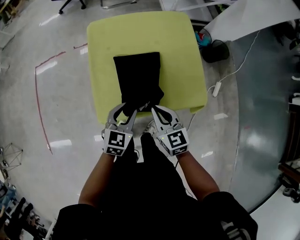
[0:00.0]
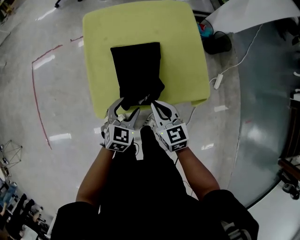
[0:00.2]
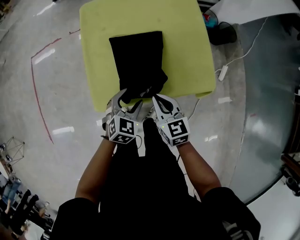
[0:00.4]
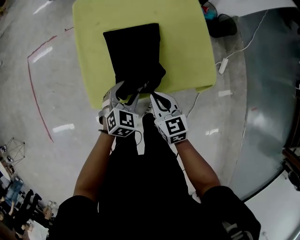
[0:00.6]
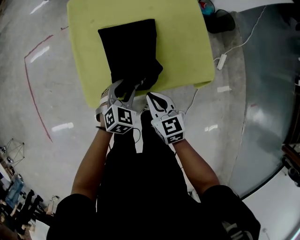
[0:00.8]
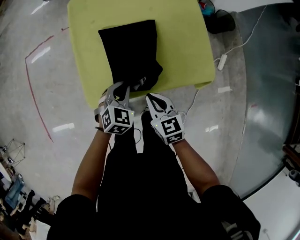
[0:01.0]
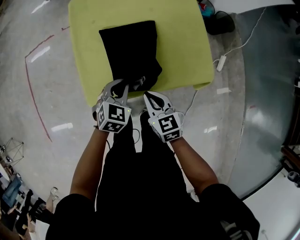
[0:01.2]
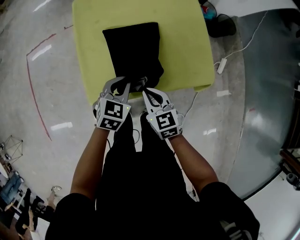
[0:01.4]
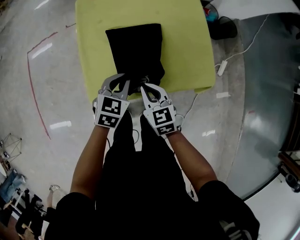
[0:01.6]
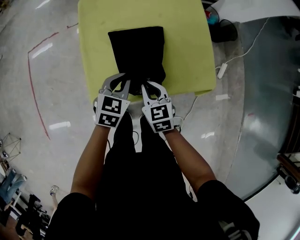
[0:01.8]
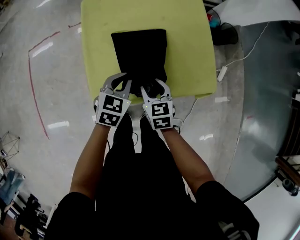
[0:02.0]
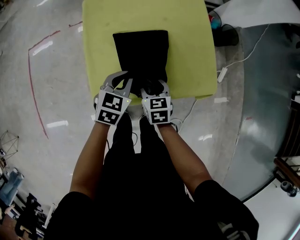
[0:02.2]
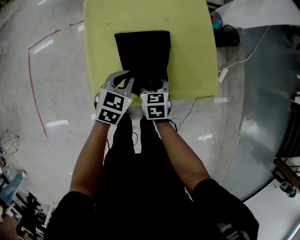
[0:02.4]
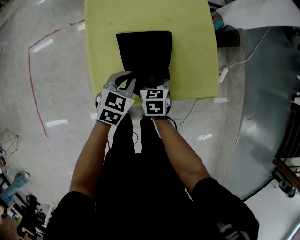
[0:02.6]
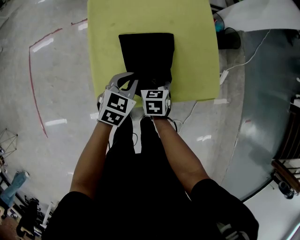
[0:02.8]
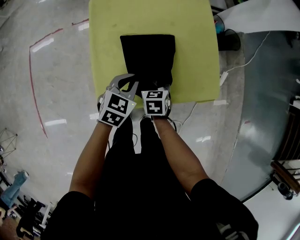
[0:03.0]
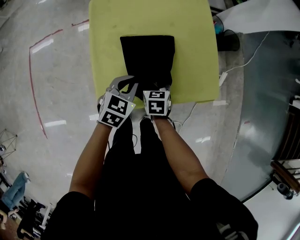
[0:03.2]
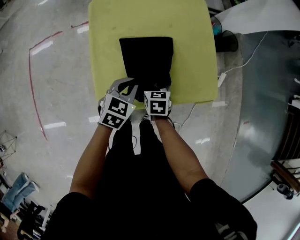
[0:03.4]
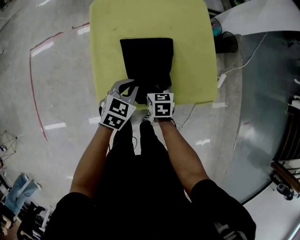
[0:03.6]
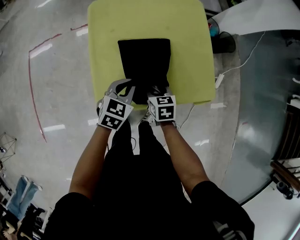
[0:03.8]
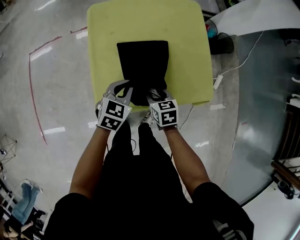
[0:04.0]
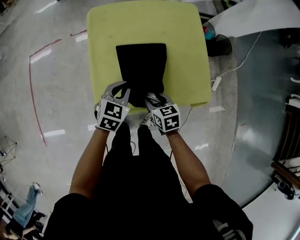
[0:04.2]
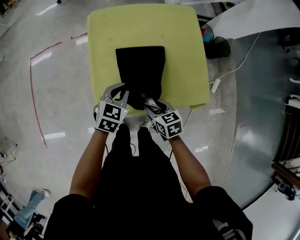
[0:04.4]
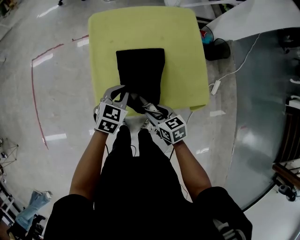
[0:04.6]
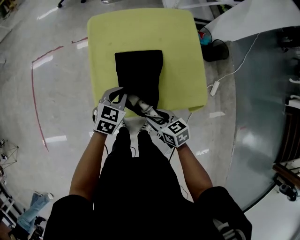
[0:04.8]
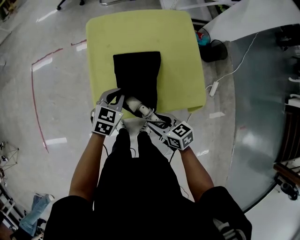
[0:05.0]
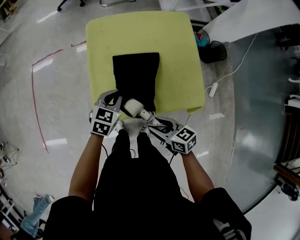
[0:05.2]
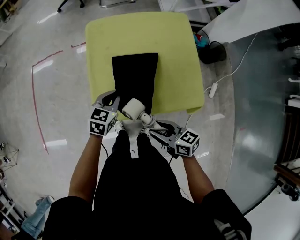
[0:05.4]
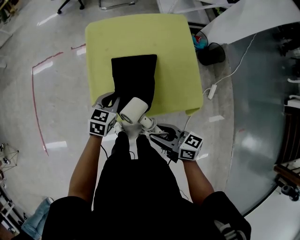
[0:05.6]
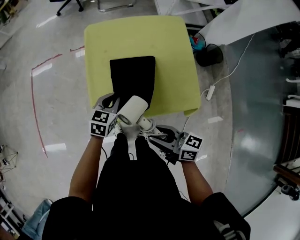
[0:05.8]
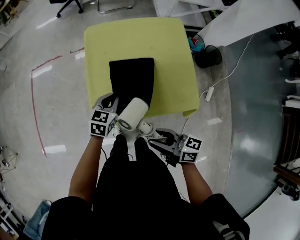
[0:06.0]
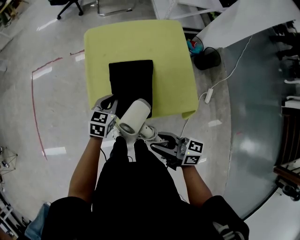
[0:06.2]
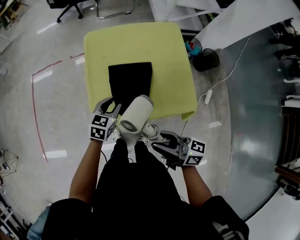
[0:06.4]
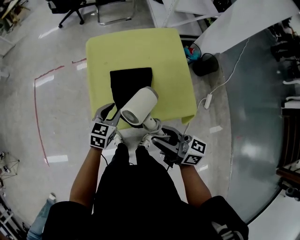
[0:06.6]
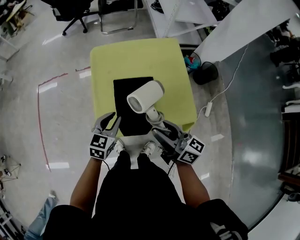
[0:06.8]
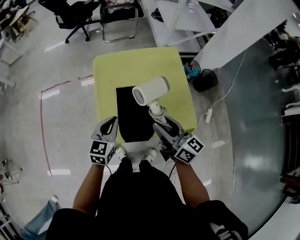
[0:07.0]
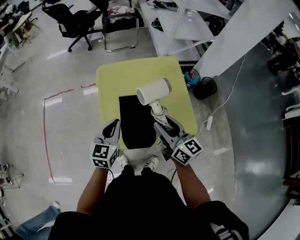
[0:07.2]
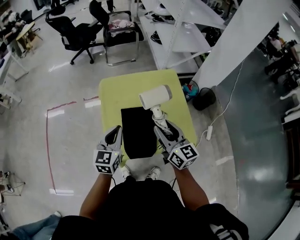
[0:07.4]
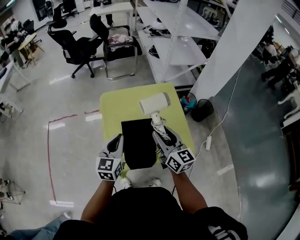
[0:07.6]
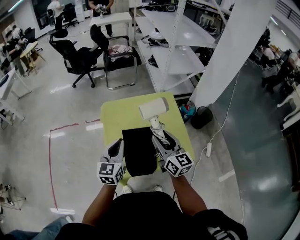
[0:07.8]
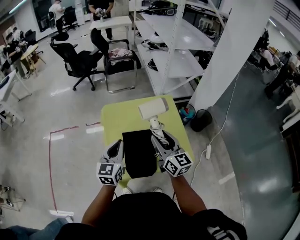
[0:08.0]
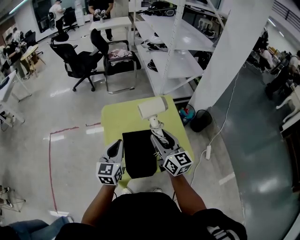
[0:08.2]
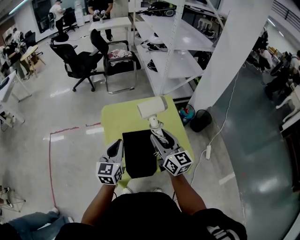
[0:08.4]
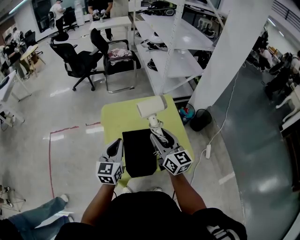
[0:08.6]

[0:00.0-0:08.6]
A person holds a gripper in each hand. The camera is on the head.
0:00.0 to 0:01.4: The left gripper shifts some 5 cm downward, and closes up. The right gripper is displaced downward by about 10 cm.
0:01.4 to 0:02.8: The right gripper shifts roughly 10 cm forward and downward, turns by roughly 20 degrees, and opens its fingers; the left gripper moves about 5 cm.
0:02.8 to 0:04.4: The right gripper goes approximately 10 cm backward, and changes its angle by some 20 degrees.
0:04.4 to 0:05.8: The right gripper travels upward and backward by roughly 15 cm, and points its fingers roughly 40 degrees further upward.
0:05.8 to 0:07.2: The left gripper goes about 15 cm upward, swivels some 20 degrees, and opens, then closes again. The right gripper travels forward and upward by some 20 cm, and changes its angle by about 40 degrees.
0:07.2 to 0:08.6: Both grippers travel together upward, about 5 cm.

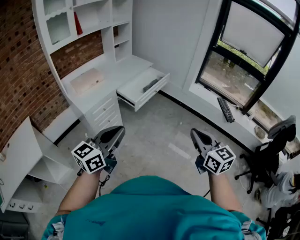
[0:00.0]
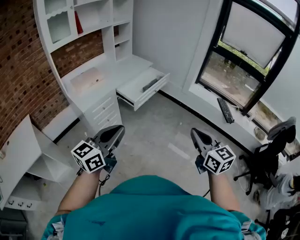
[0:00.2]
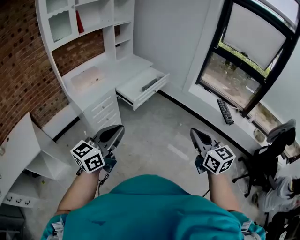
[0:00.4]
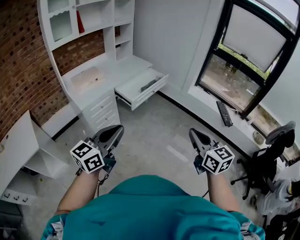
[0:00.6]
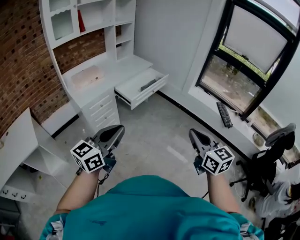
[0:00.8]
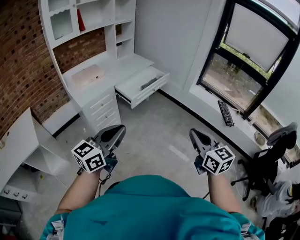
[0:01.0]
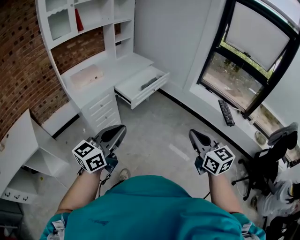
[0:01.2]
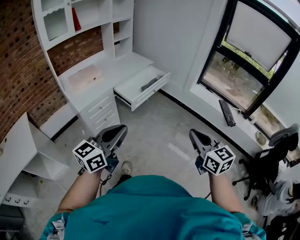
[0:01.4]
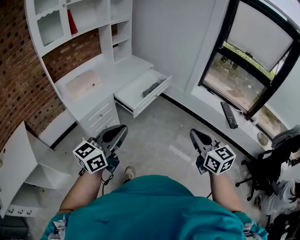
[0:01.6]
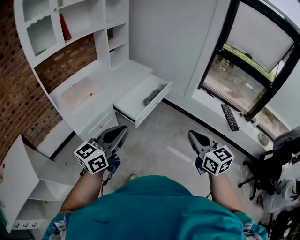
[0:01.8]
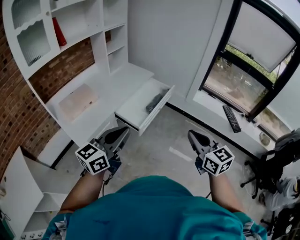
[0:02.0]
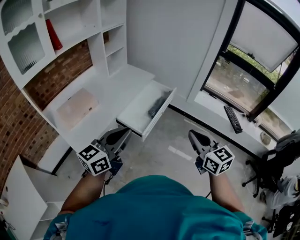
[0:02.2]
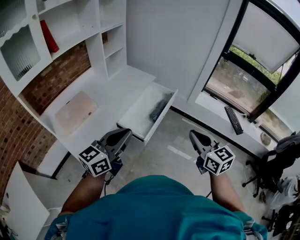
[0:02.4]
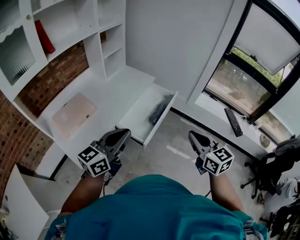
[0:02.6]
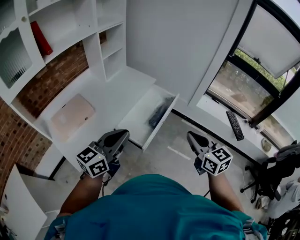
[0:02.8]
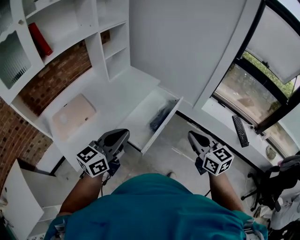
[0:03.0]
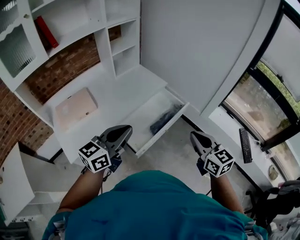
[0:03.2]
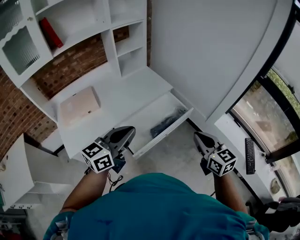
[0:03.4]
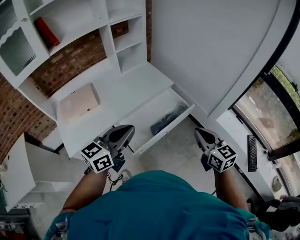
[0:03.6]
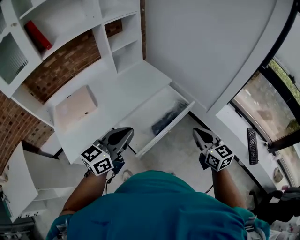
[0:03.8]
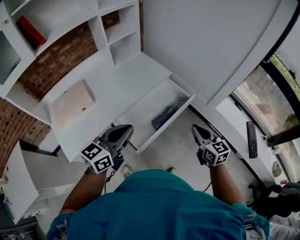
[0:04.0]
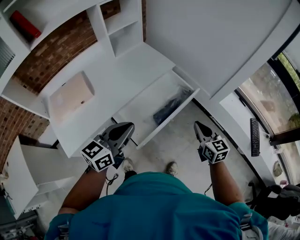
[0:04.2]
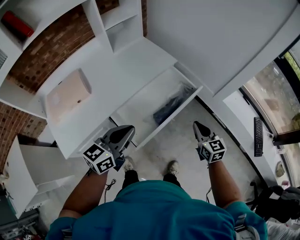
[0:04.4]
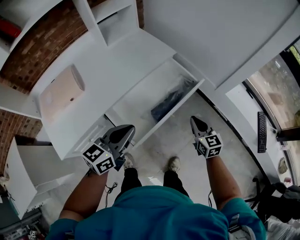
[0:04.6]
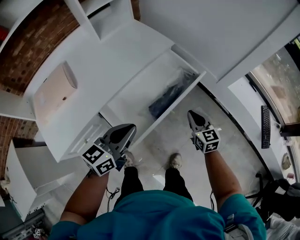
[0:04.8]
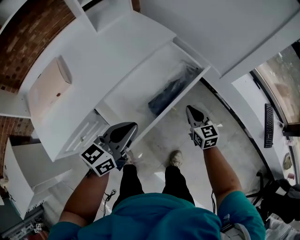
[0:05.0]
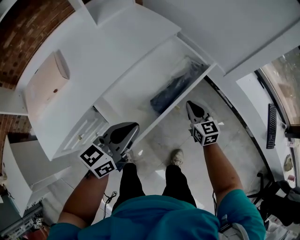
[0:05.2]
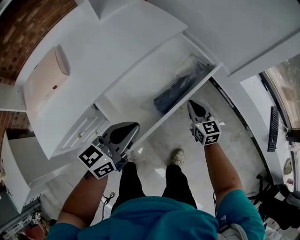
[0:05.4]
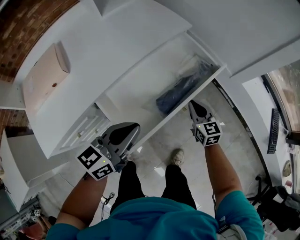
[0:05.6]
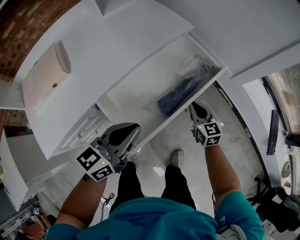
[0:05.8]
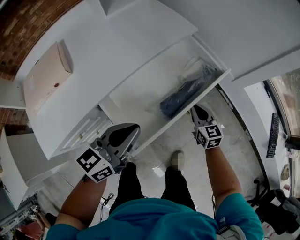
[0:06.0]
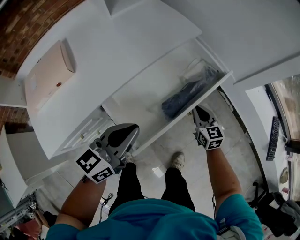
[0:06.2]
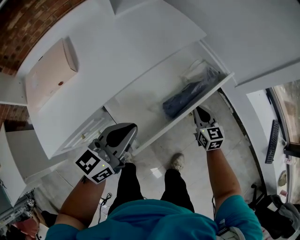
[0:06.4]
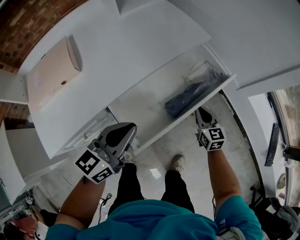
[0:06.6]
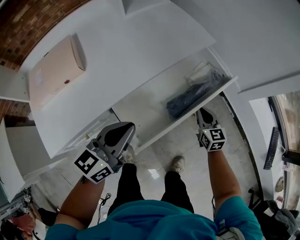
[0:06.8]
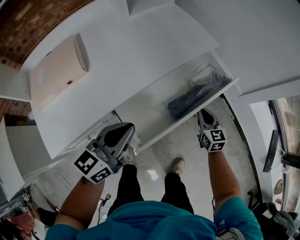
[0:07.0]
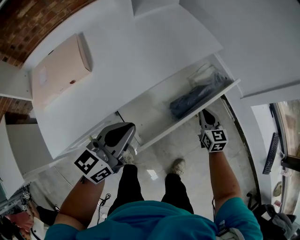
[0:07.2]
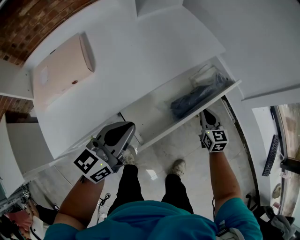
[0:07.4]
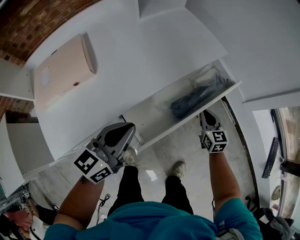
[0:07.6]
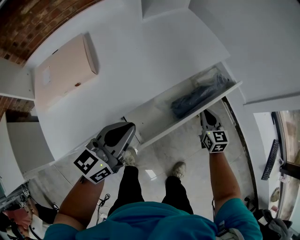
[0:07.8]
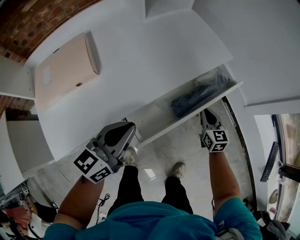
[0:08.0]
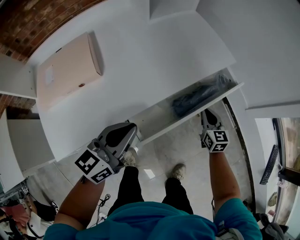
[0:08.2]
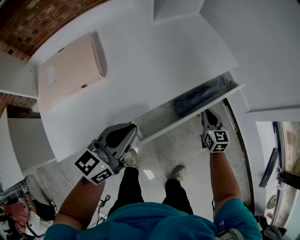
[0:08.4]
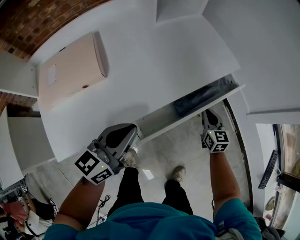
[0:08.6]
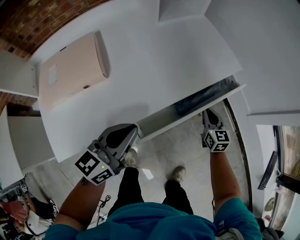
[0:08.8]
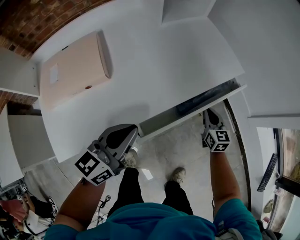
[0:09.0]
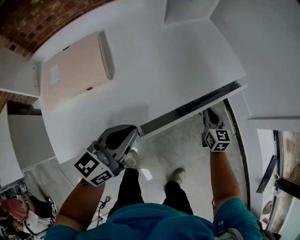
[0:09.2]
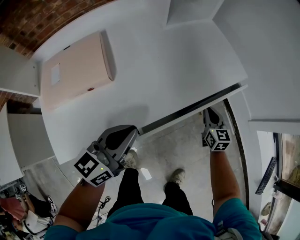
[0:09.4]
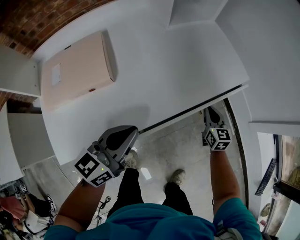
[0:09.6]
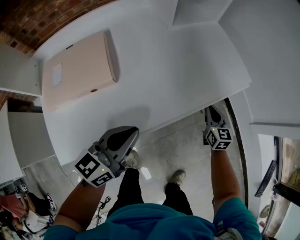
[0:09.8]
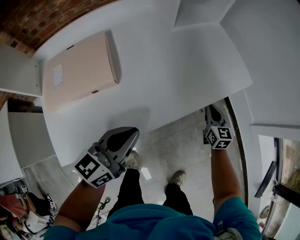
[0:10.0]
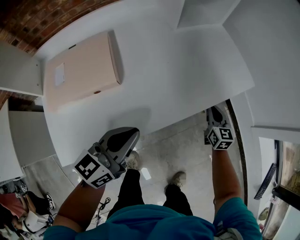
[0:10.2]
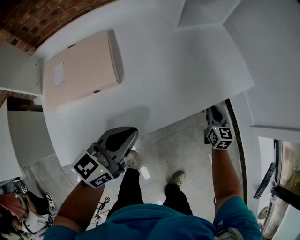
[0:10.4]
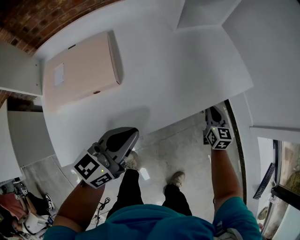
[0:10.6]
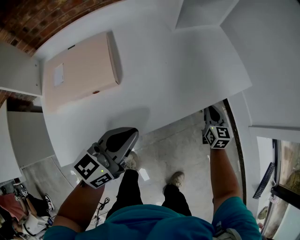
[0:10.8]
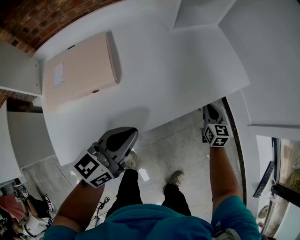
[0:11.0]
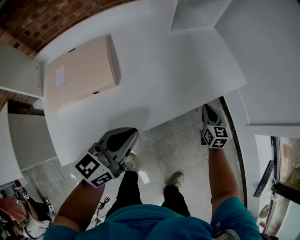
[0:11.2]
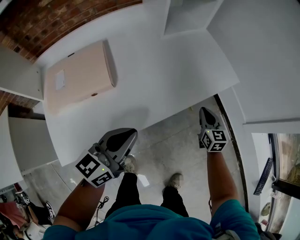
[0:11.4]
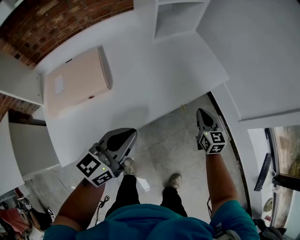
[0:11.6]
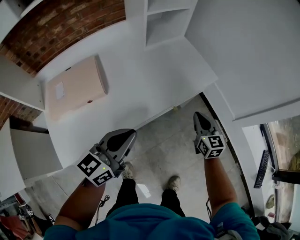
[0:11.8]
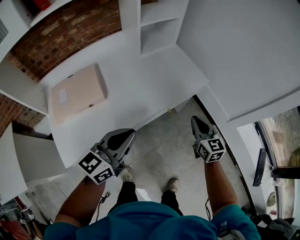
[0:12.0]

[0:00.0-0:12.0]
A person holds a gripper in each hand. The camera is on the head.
0:00.0 to 0:01.6: The two grippers go about 10 cm forward.
0:01.6 to 0:03.0: The two grippers go about 35 cm forward.
0:03.0 to 0:04.4: The right gripper moves downward and forward, some 30 cm. Meanwhile the left gripper moves downward, forward and to the right, some 20 cm.
0:04.4 to 0:06.0: The right gripper shifts roughly 25 cm downward and forward. The left gripper moves downward, approximately 15 cm.
0:06.0 to 0:07.6: The left gripper shifts roughly 10 cm to the left. Meanwhile the right gripper heads to the left and forward, covering approximately 10 cm.
0:07.6 to 0:09.0: The left gripper is displaced to the left by about 5 cm. The right gripper goes approximately 10 cm forward and to the left.
0:09.0 to 0:10.4: The right gripper moves forward, about 5 cm.
0:10.4 to 0:12.0: The right gripper moves upward and backward, approximately 25 cm. Meanwhile the left gripper goes some 15 cm upward and to the right.

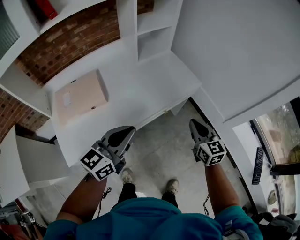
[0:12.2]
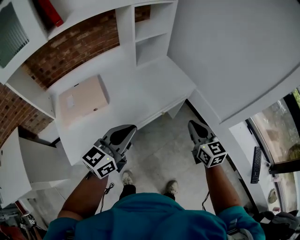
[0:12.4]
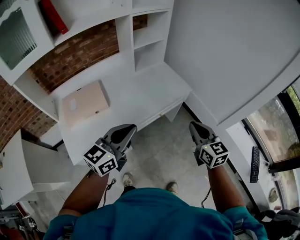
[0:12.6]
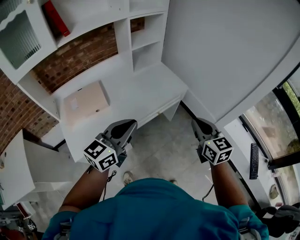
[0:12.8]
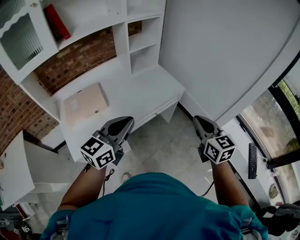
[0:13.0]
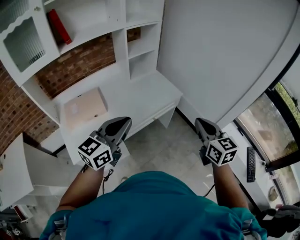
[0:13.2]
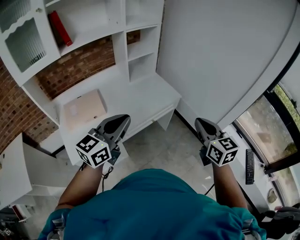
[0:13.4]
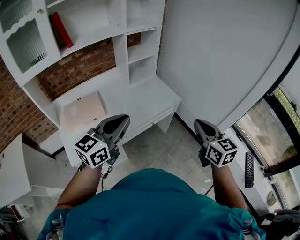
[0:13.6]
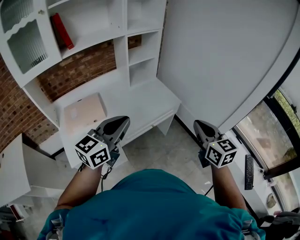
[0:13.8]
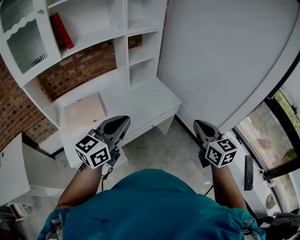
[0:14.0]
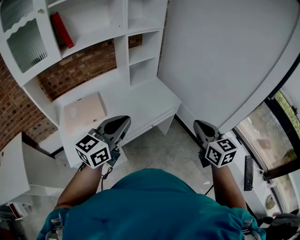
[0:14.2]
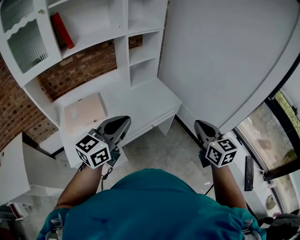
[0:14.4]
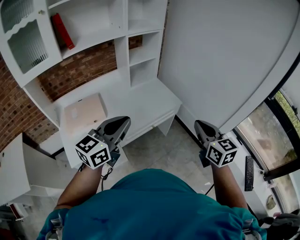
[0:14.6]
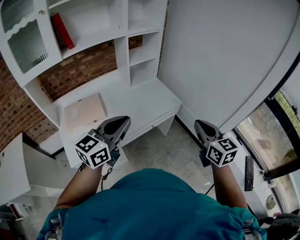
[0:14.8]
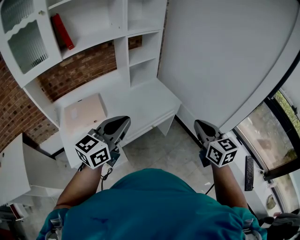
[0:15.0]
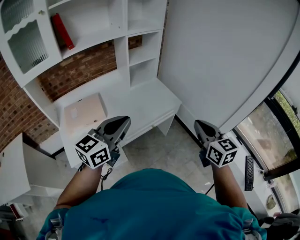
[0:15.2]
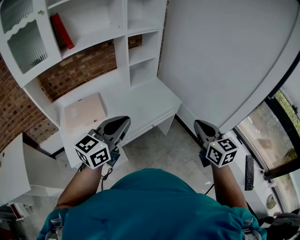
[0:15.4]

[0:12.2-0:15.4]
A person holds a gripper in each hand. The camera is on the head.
0:12.2 to 0:13.8: The left gripper heads upward, covering some 15 cm, while the right gripper heads upward and backward, covering approximately 25 cm.
0:13.8 to 0:15.4: The two grippers keep their place.
